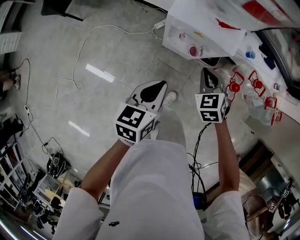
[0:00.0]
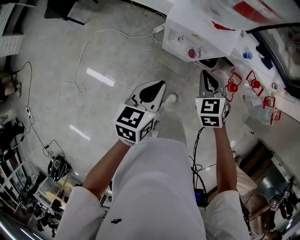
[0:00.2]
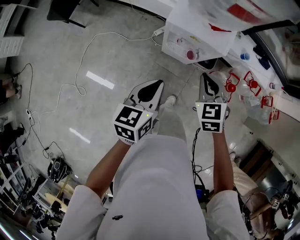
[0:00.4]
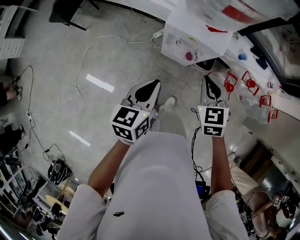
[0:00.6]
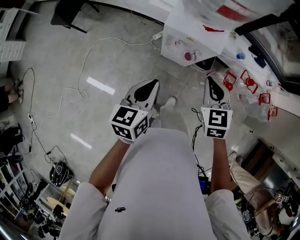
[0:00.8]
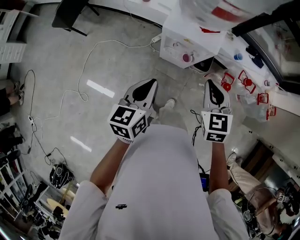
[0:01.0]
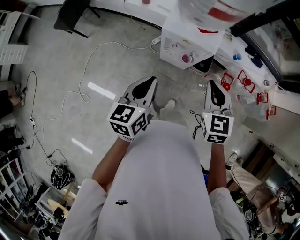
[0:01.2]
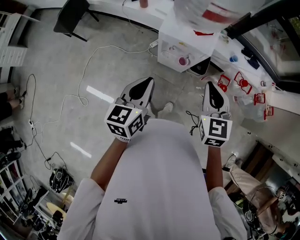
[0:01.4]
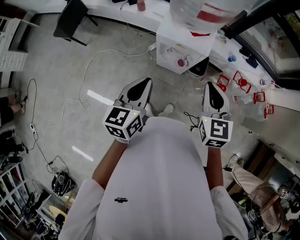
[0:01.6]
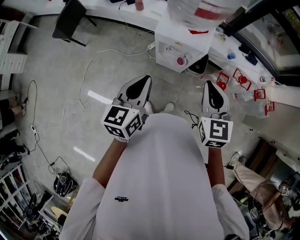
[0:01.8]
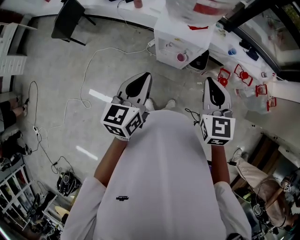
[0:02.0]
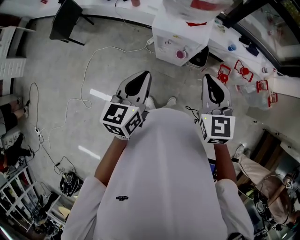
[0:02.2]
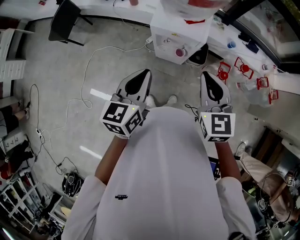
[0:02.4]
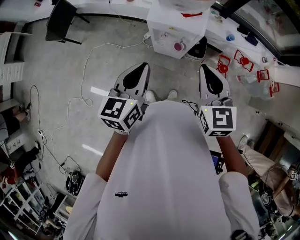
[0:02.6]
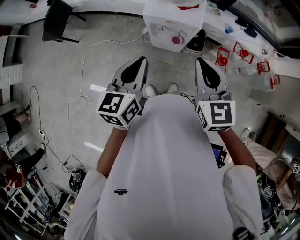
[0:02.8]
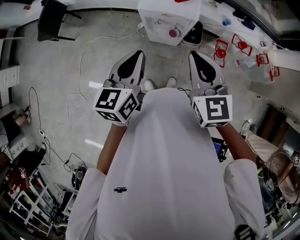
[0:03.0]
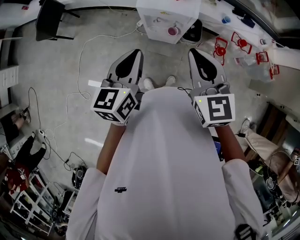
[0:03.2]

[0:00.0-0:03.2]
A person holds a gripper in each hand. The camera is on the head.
0:00.0 to 0:01.6: The left gripper travels upward by roughly 15 cm. Meanwhile the right gripper goes approximately 25 cm upward, and changes its angle by some 30 degrees.
0:01.6 to 0:03.2: The right gripper shifts by roughly 5 cm.

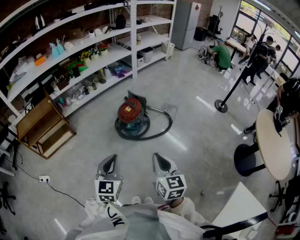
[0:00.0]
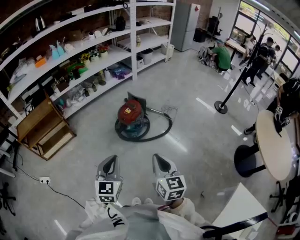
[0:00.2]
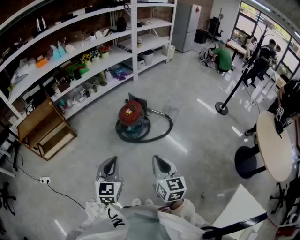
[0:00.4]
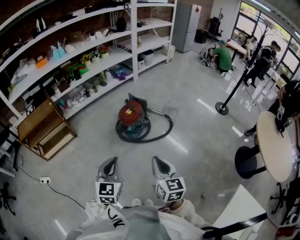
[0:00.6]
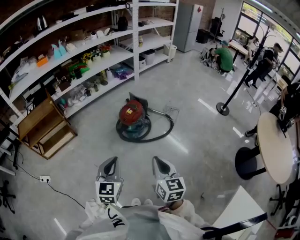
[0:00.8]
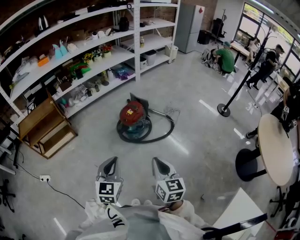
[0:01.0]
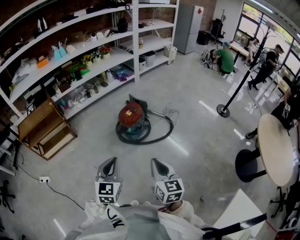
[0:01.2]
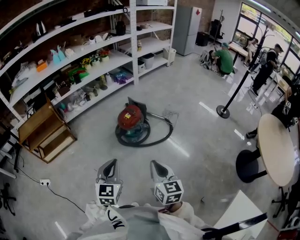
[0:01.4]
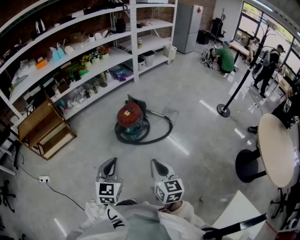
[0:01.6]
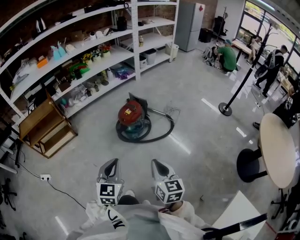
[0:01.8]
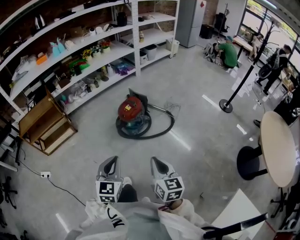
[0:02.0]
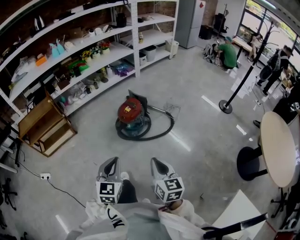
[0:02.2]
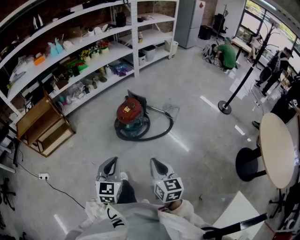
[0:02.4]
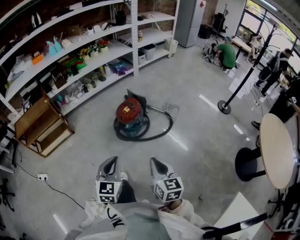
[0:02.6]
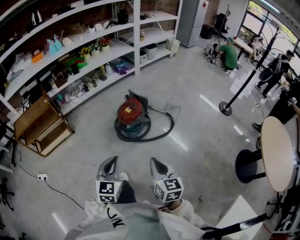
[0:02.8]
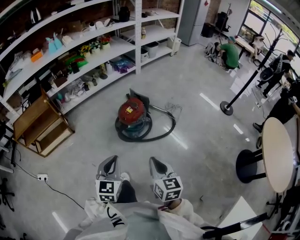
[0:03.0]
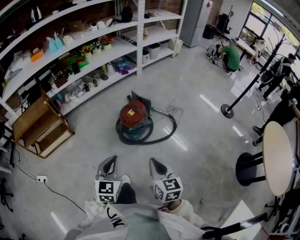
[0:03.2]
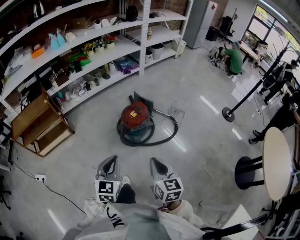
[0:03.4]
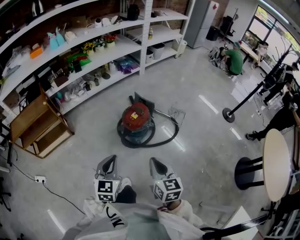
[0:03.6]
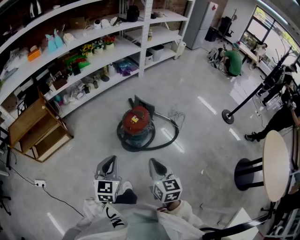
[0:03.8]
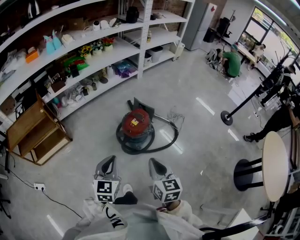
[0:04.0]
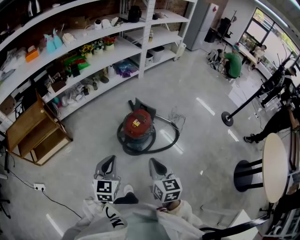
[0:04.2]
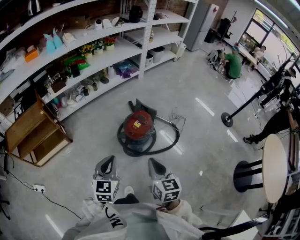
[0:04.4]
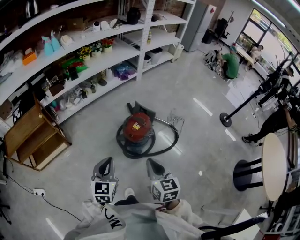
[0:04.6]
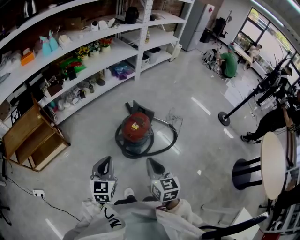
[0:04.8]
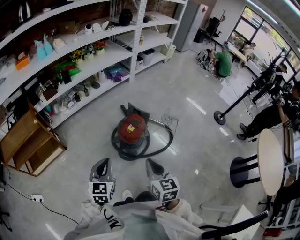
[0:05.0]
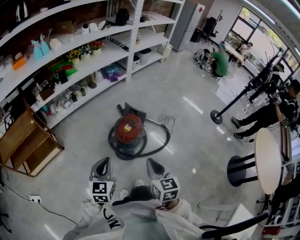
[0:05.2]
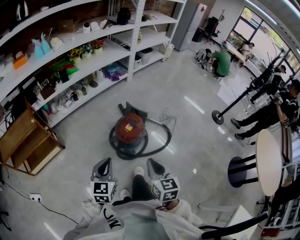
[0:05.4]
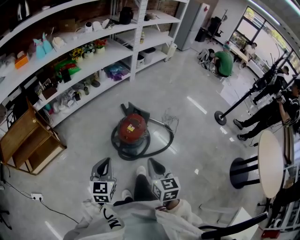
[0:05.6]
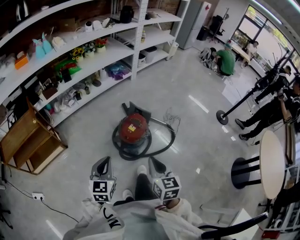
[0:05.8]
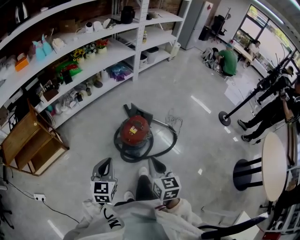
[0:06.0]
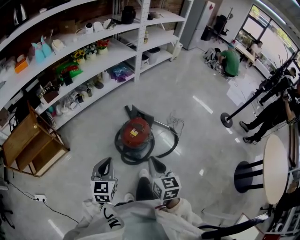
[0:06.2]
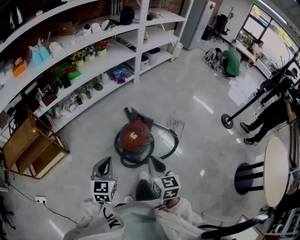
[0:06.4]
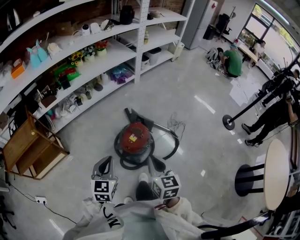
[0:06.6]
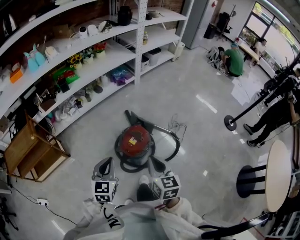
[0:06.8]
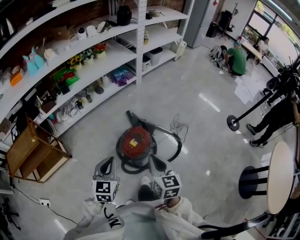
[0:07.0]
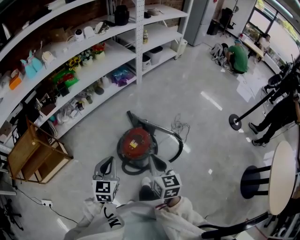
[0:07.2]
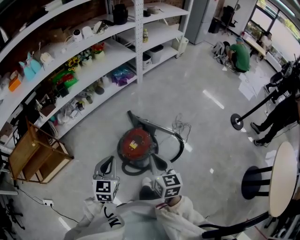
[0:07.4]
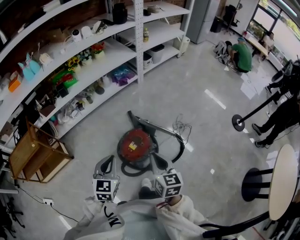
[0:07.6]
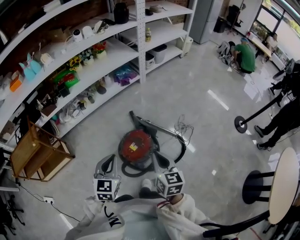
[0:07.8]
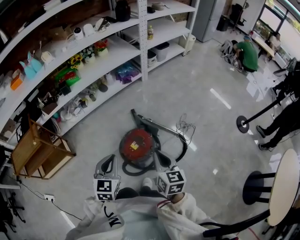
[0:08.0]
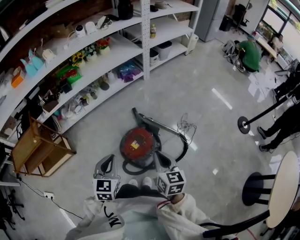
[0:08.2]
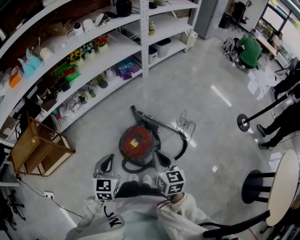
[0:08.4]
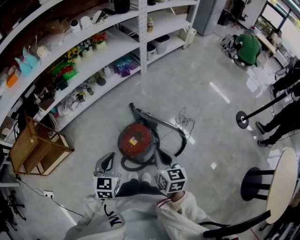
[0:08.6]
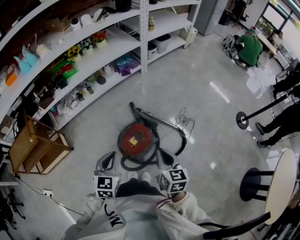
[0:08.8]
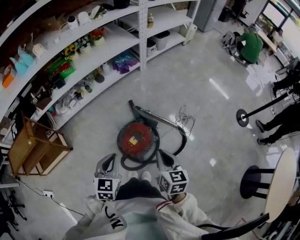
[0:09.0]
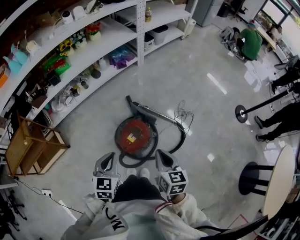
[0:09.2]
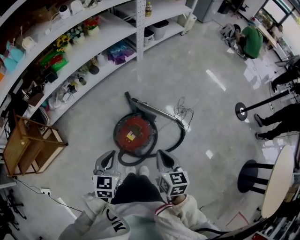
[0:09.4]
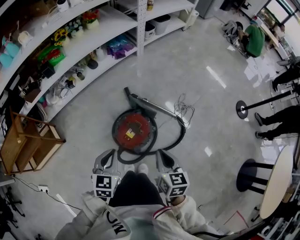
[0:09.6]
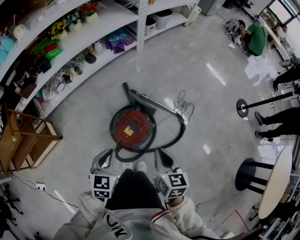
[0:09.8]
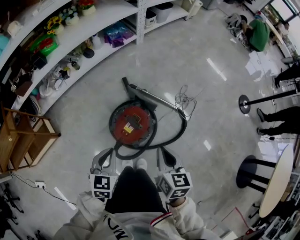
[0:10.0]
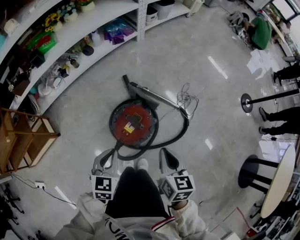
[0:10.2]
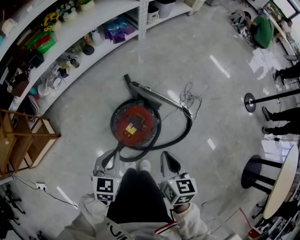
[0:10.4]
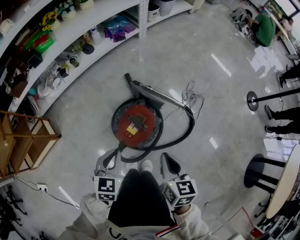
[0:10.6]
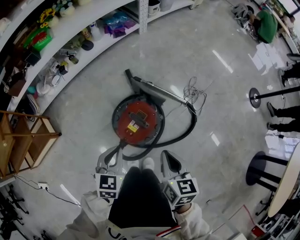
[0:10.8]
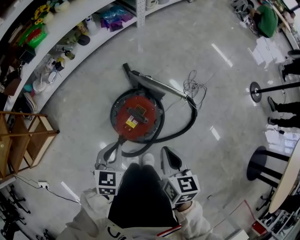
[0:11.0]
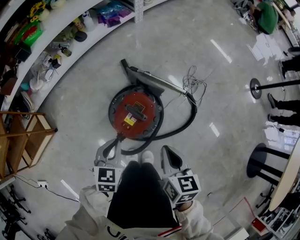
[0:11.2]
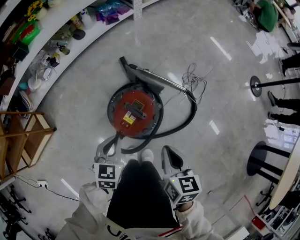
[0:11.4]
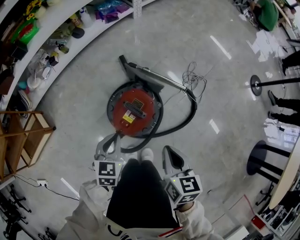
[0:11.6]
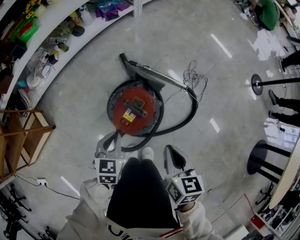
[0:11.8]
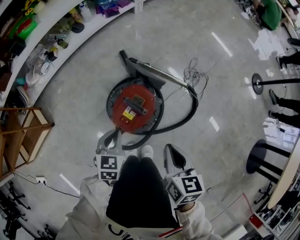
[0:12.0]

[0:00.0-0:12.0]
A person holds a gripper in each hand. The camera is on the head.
0:00.0 to 0:01.6: The grippers move only a little.
0:01.6 to 0:03.0: Both grippers move forward, about 5 cm.
0:03.0 to 0:04.4: Both grippers travel together forward and to the left, roughly 20 cm.
0:04.4 to 0:06.0: The two grippers go some 5 cm forward.
0:06.0 to 0:07.6: Both grippers move forward and to the right, roughly 20 cm.
0:07.6 to 0:09.0: The right gripper ends up some 5 cm from where it was.
0:09.0 to 0:10.4: Both grippers move downward, some 10 cm.
0:10.4 to 0:12.0: The right gripper moves downward, approximately 5 cm; the left gripper travels downward by approximately 15 cm.

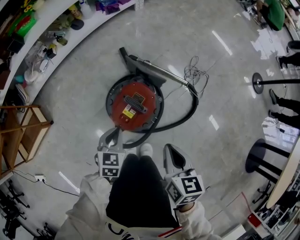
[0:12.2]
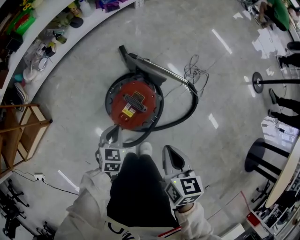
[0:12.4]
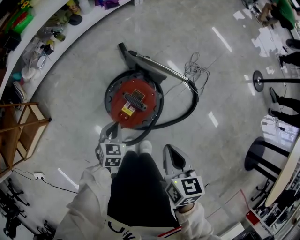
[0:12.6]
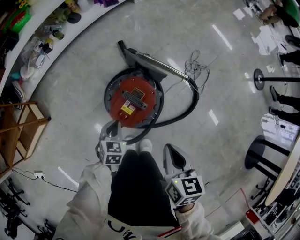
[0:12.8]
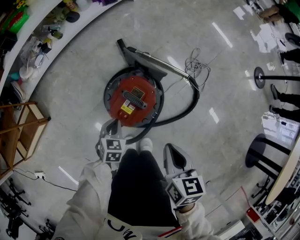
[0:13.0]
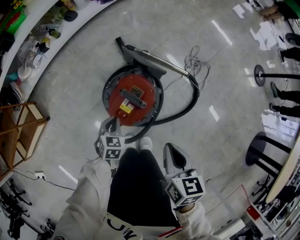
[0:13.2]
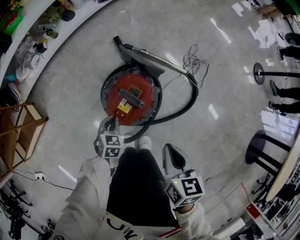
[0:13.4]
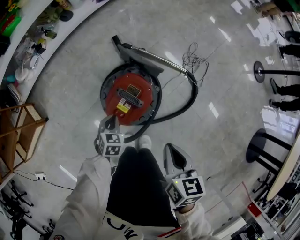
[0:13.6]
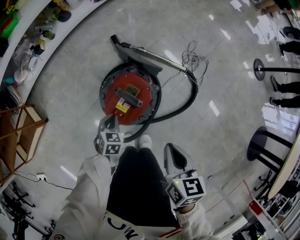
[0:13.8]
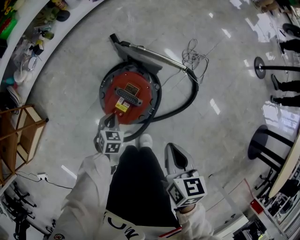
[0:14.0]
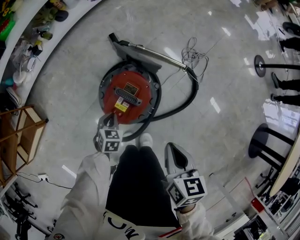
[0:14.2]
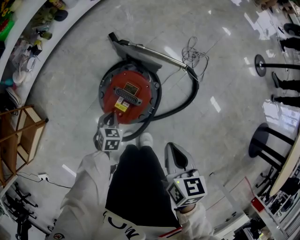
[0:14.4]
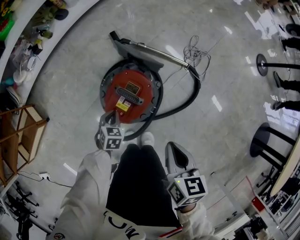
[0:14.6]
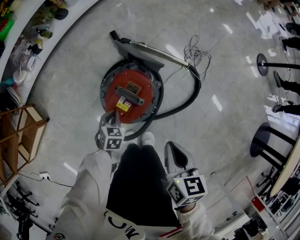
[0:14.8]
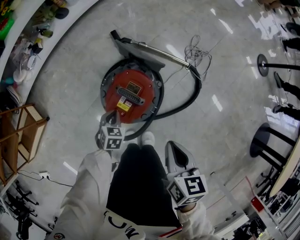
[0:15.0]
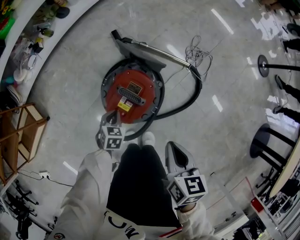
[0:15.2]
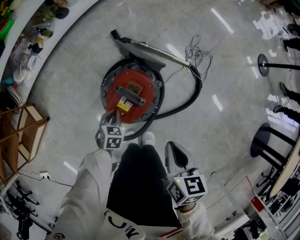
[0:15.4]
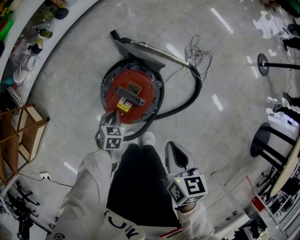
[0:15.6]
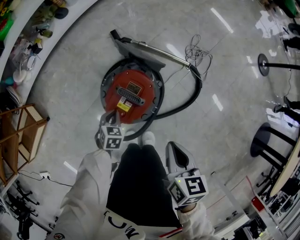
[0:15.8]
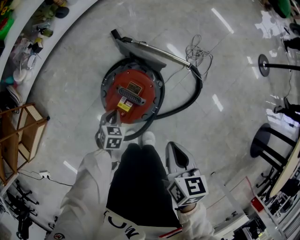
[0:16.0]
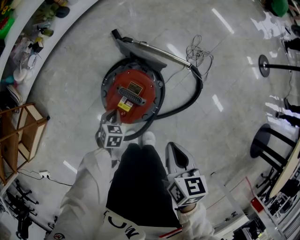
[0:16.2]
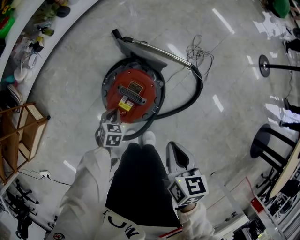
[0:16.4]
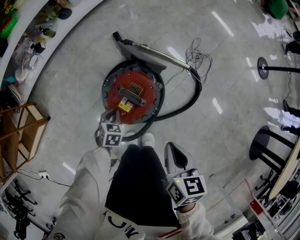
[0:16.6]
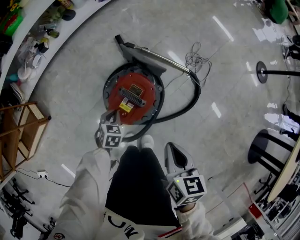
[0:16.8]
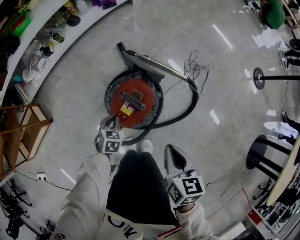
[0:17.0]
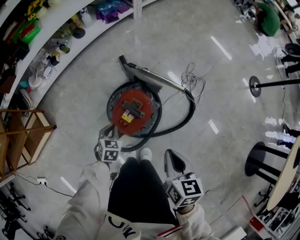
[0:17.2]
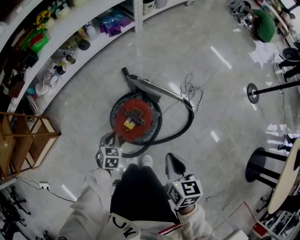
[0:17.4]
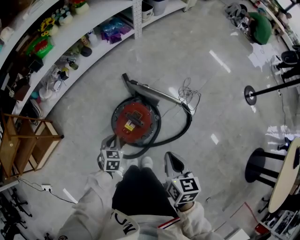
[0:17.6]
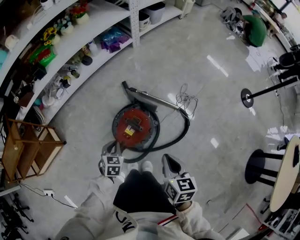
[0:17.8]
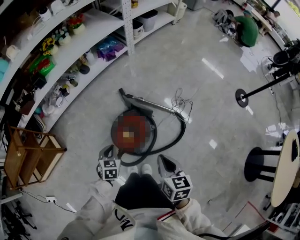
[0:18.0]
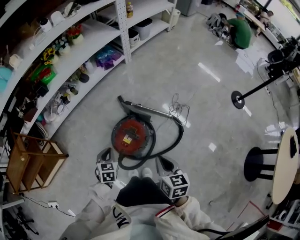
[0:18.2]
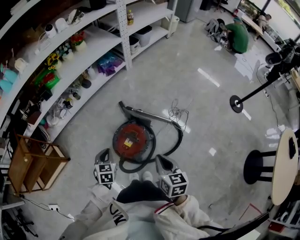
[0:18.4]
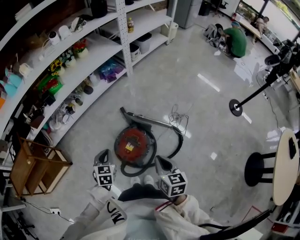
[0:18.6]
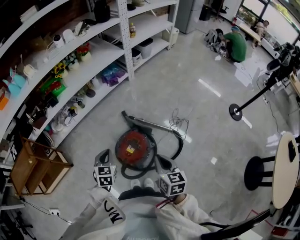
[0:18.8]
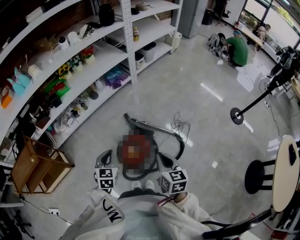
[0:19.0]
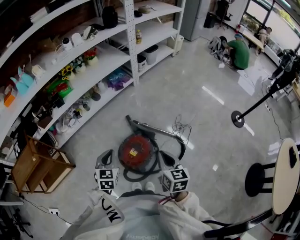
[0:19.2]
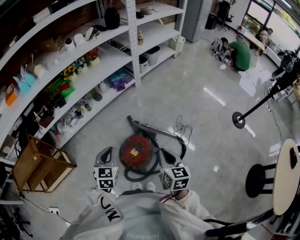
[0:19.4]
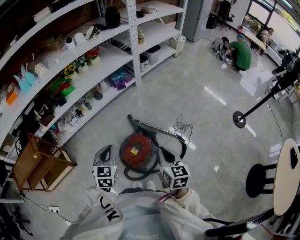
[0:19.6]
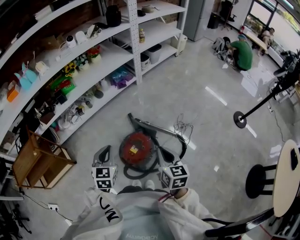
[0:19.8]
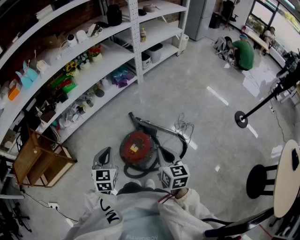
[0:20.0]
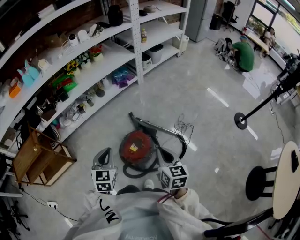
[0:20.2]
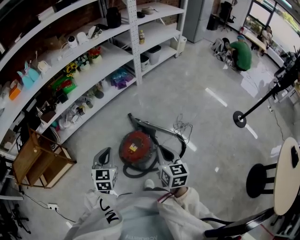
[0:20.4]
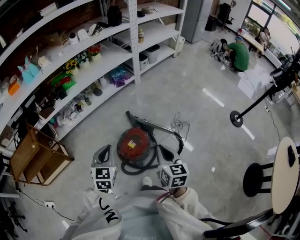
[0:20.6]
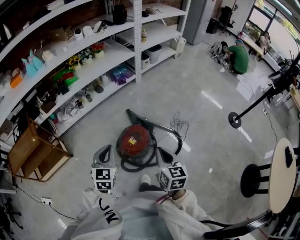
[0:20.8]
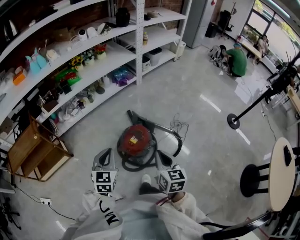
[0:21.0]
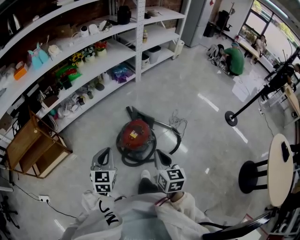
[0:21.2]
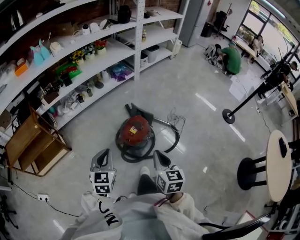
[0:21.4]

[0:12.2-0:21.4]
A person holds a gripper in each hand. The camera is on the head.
0:12.2 to 0:13.8: The left gripper moves downward, roughly 15 cm.
0:13.8 to 0:16.8: There are only small adjustments of the grippers.
0:16.8 to 0:18.4: The left gripper is displaced upward by about 30 cm, and swivels roughly 20 degrees. The right gripper moves upward, roughly 15 cm.
0:18.4 to 0:19.8: The left gripper moves upward, approximately 15 cm. The right gripper moves upward, approximately 5 cm.
0:19.8 to 0:21.4: The left gripper shifts approximately 20 cm backward. Meanwhile the right gripper goes about 20 cm backward and to the left.
